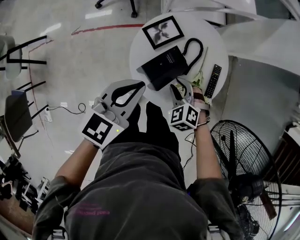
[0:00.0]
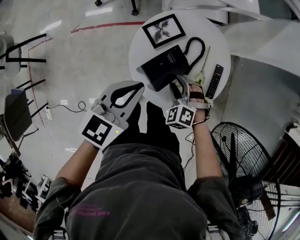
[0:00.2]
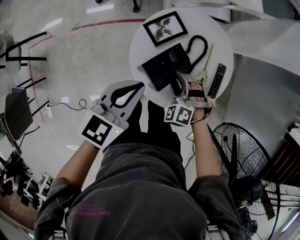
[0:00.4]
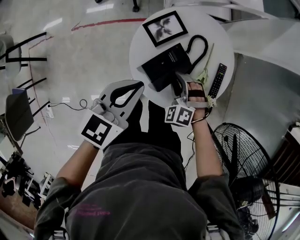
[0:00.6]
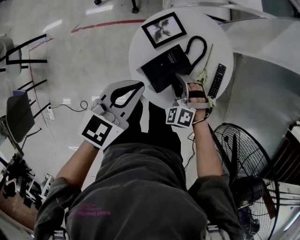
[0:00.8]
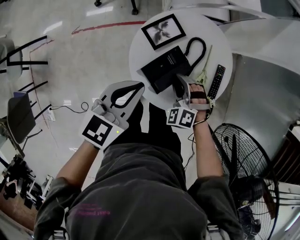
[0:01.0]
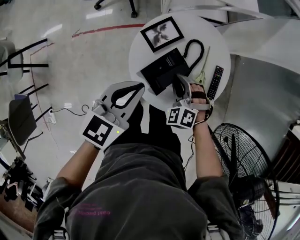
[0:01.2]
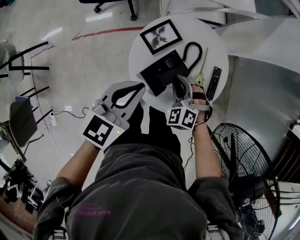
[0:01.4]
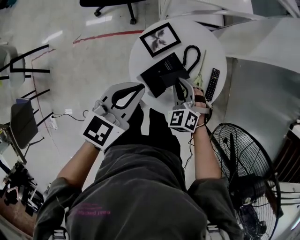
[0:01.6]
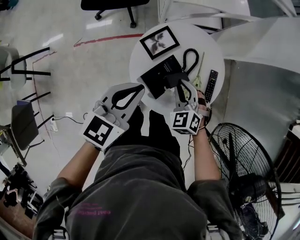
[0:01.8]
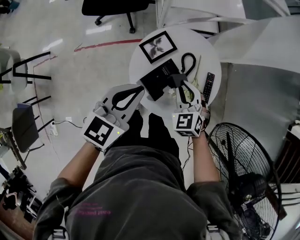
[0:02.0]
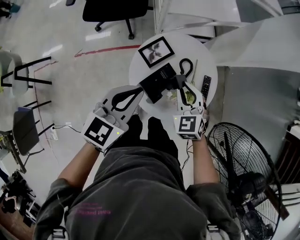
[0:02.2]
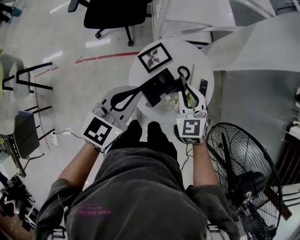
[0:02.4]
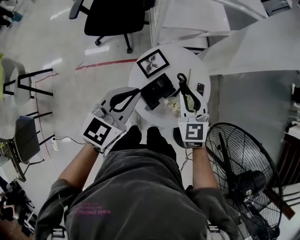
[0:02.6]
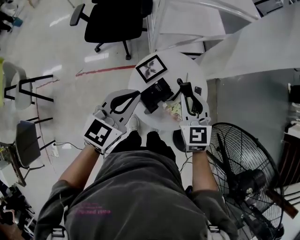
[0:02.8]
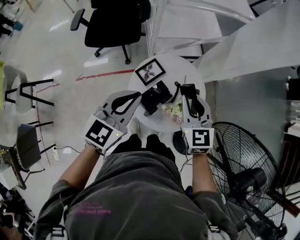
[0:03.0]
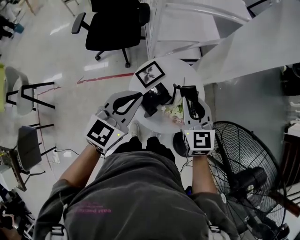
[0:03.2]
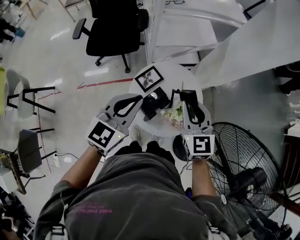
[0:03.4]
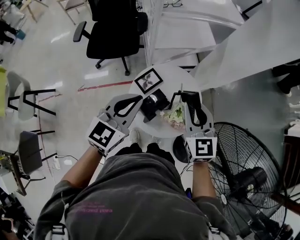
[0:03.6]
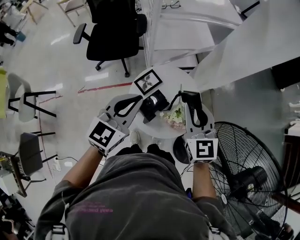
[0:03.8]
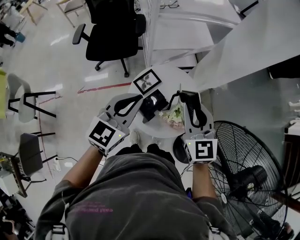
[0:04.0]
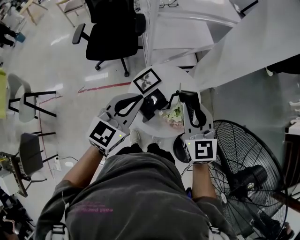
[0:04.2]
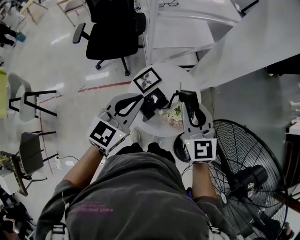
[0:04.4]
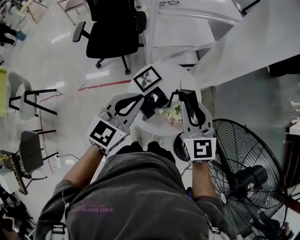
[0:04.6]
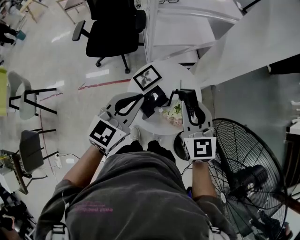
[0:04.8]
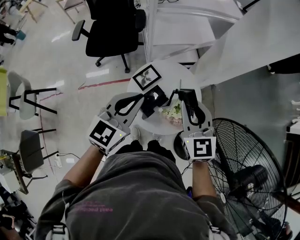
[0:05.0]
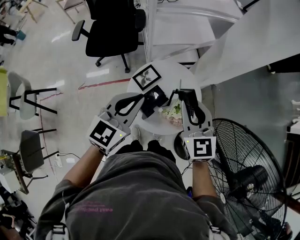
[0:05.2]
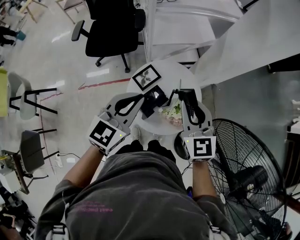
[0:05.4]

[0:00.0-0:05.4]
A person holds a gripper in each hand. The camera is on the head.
0:00.0 to 0:01.4: The grippers make only small movements.
0:01.4 to 0:02.8: The right gripper shifts roughly 25 cm upward, and rotates about 50 degrees. The left gripper goes approximately 10 cm upward.
0:02.8 to 0:04.0: The left gripper travels upward by about 5 cm; the right gripper travels upward by roughly 10 cm.
0:04.0 to 0:05.4: The grippers make only small movements.

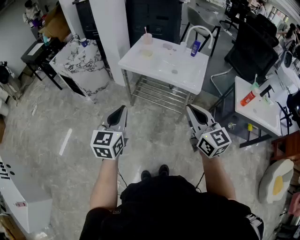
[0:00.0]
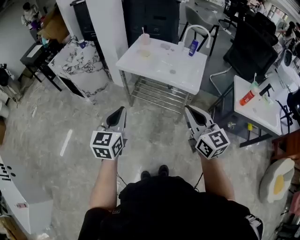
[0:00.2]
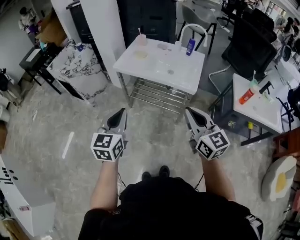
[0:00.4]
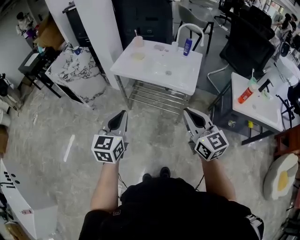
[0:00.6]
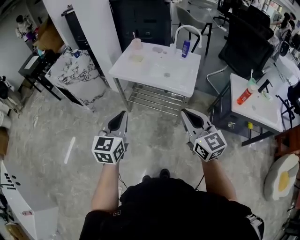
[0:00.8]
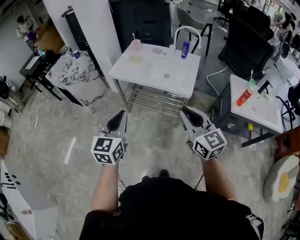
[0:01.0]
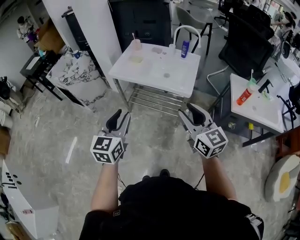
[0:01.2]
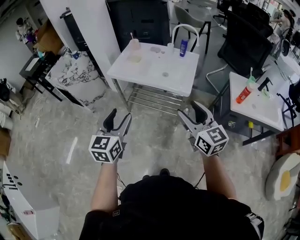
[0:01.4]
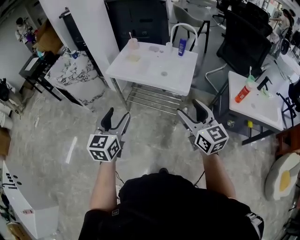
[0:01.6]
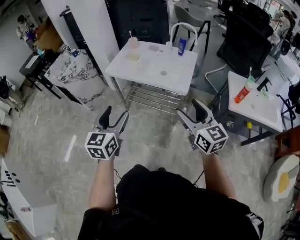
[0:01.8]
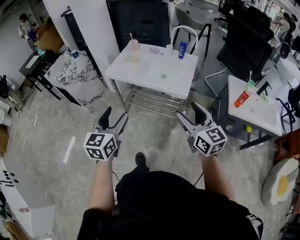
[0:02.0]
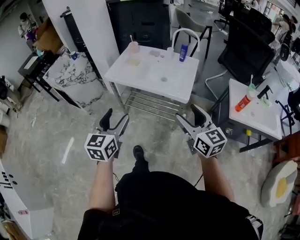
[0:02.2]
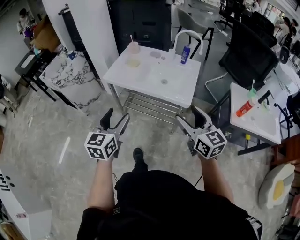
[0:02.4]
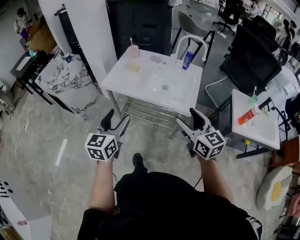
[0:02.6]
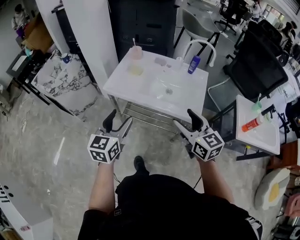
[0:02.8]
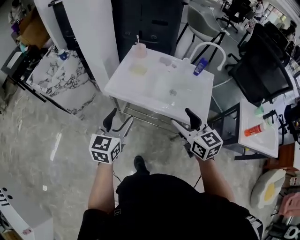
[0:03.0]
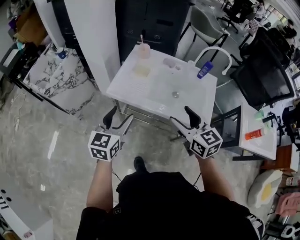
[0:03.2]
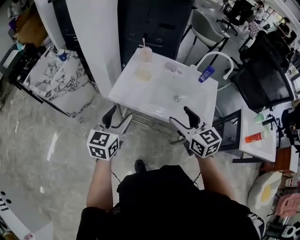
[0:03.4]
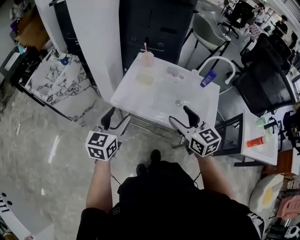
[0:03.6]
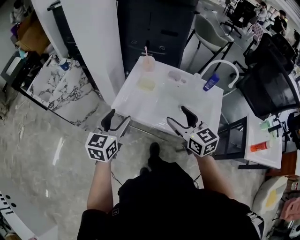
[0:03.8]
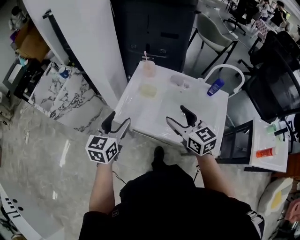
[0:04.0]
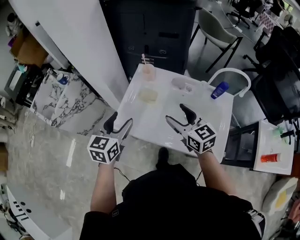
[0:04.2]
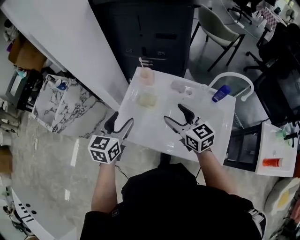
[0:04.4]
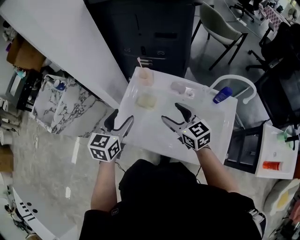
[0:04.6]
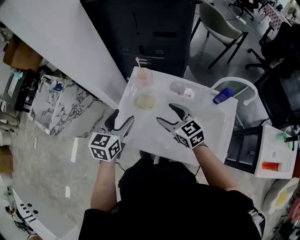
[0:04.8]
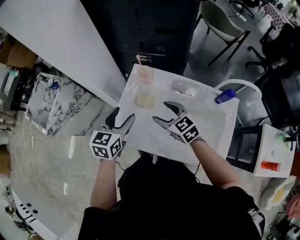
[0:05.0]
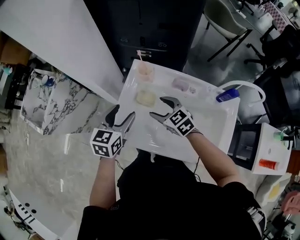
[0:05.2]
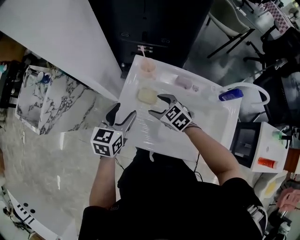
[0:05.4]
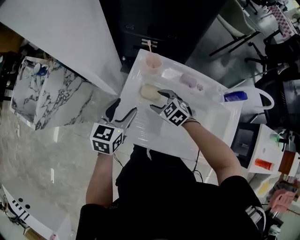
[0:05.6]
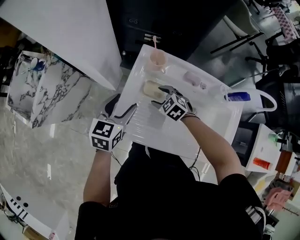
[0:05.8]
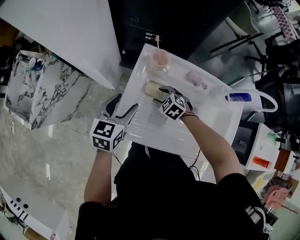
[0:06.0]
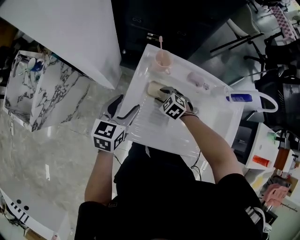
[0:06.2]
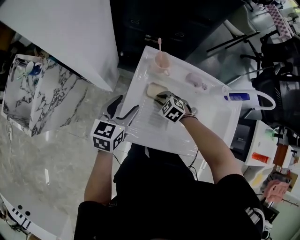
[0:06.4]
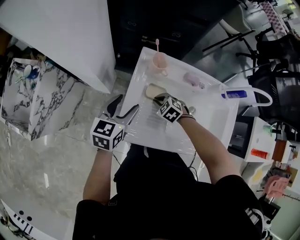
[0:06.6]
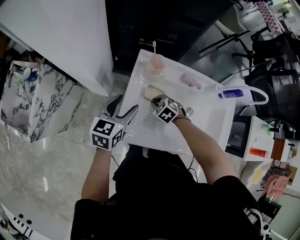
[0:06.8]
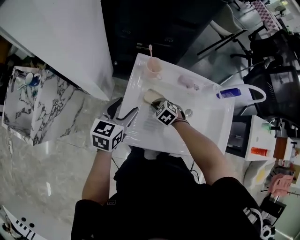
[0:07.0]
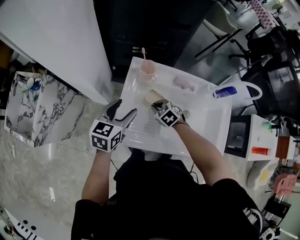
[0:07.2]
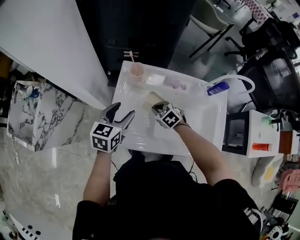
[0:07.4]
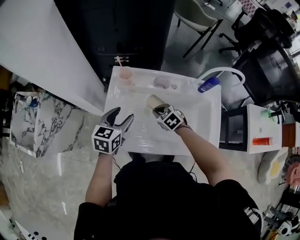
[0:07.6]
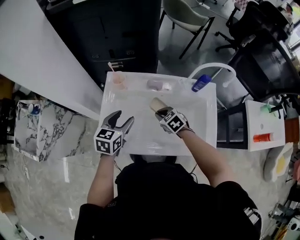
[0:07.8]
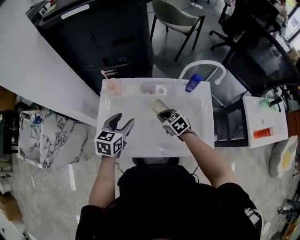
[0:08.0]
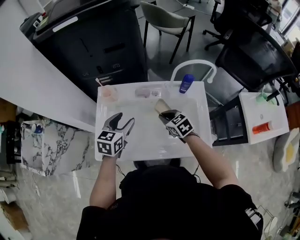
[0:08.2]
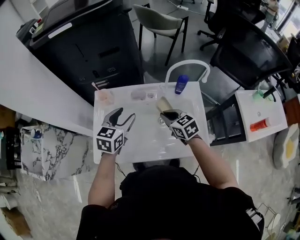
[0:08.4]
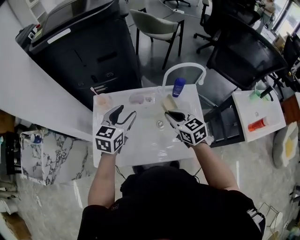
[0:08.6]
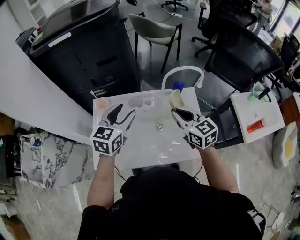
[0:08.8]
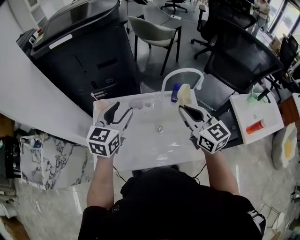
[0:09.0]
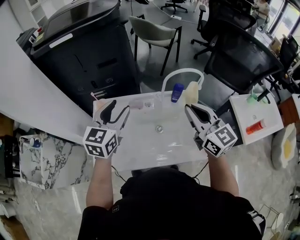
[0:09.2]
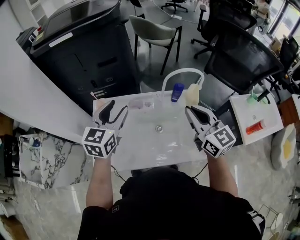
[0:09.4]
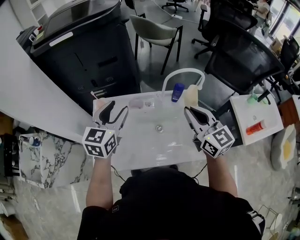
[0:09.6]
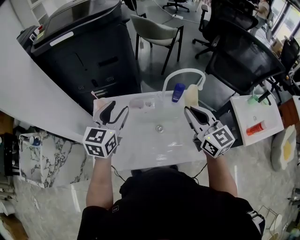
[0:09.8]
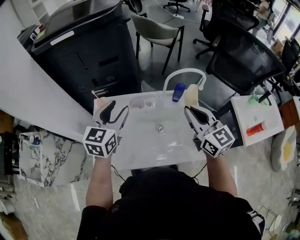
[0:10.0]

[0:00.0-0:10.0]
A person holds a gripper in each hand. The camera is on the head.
0:00.0 to 0:01.4: The two grippers go roughly 10 cm to the right. The right gripper opens its fingers. The left gripper opens up.
0:01.4 to 0:02.8: Both grippers move forward, roughly 20 cm.
0:02.8 to 0:04.2: Both grippers move forward, roughly 30 cm.
0:04.2 to 0:05.8: The left gripper is displaced forward and downward by approximately 20 cm. The right gripper heads downward and forward, covering some 30 cm, and points its fingers some 40 degrees further downward.
0:05.8 to 0:07.2: The right gripper closes.
0:07.2 to 0:08.6: The grippers both shift to the right and upward by some 30 cm. The right gripper angles its fingers upward, by approximately 30 degrees.
0:08.6 to 0:10.0: The right gripper goes some 15 cm upward, and changes its angle by approximately 20 degrees. Meanwhile the left gripper heads upward, covering about 10 cm.

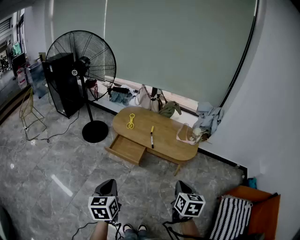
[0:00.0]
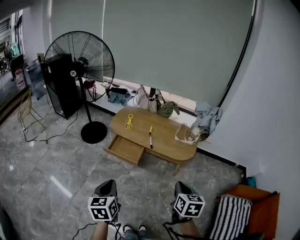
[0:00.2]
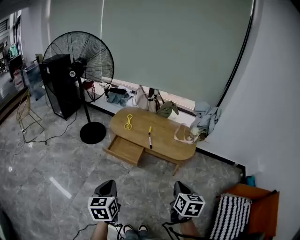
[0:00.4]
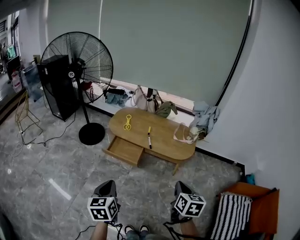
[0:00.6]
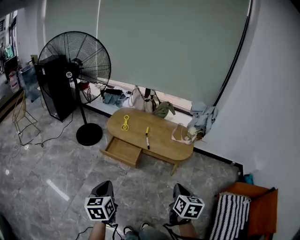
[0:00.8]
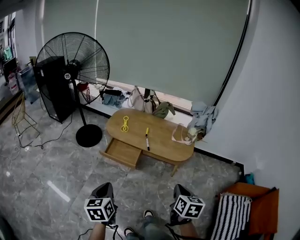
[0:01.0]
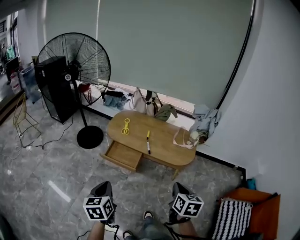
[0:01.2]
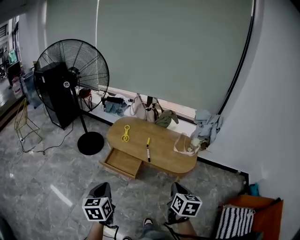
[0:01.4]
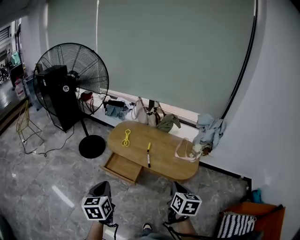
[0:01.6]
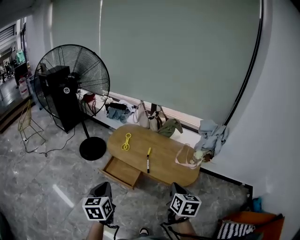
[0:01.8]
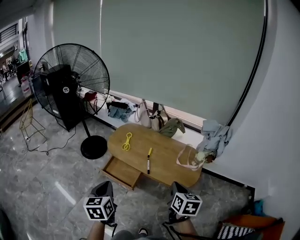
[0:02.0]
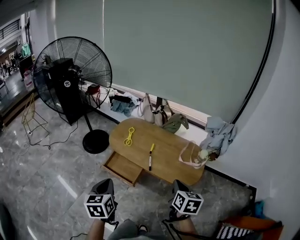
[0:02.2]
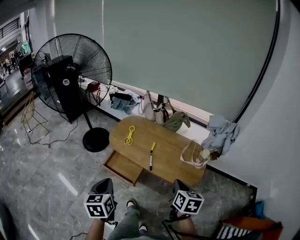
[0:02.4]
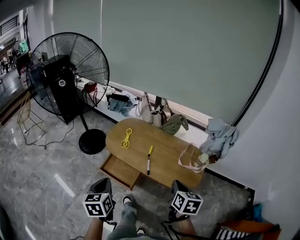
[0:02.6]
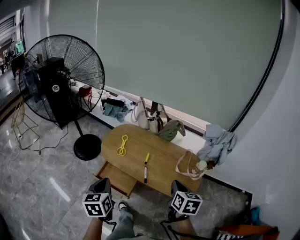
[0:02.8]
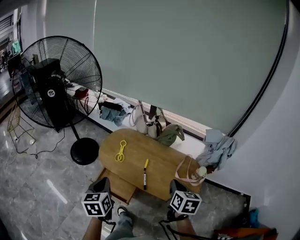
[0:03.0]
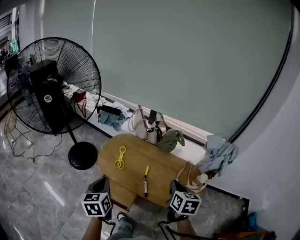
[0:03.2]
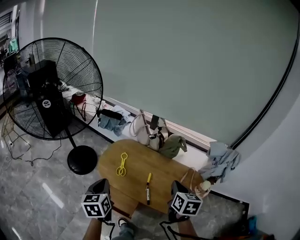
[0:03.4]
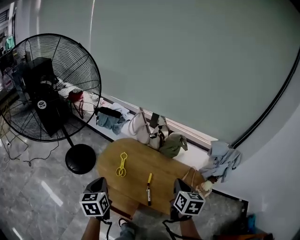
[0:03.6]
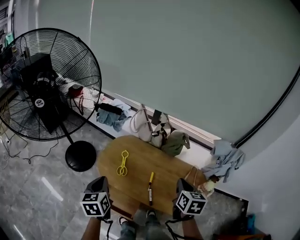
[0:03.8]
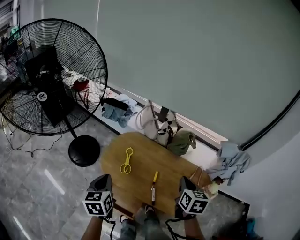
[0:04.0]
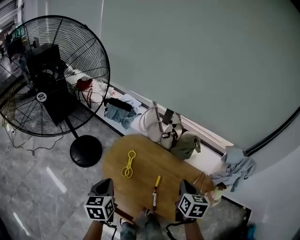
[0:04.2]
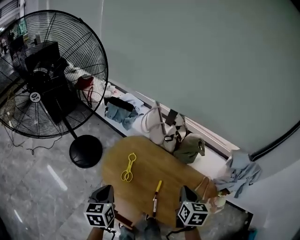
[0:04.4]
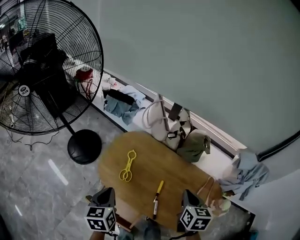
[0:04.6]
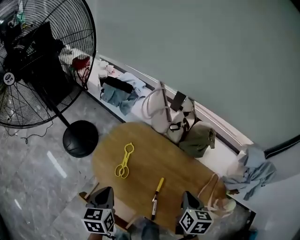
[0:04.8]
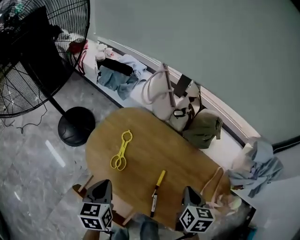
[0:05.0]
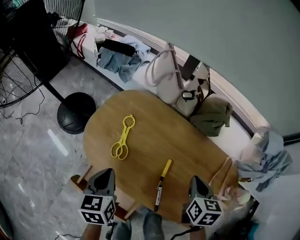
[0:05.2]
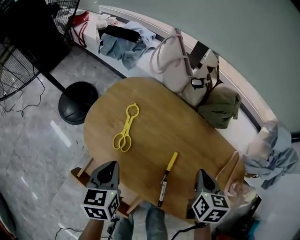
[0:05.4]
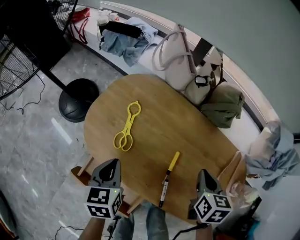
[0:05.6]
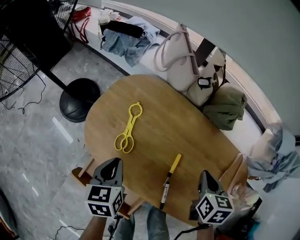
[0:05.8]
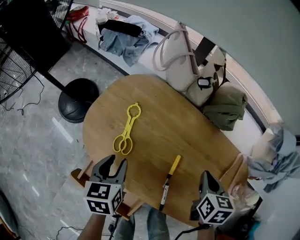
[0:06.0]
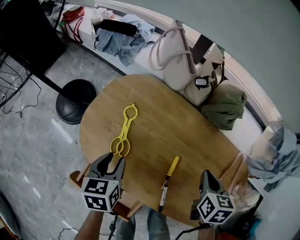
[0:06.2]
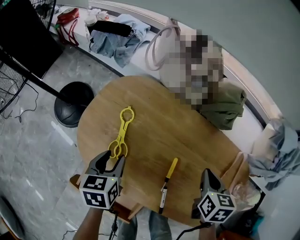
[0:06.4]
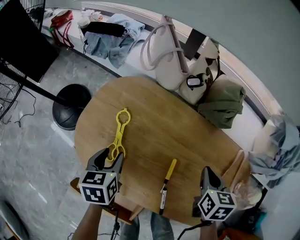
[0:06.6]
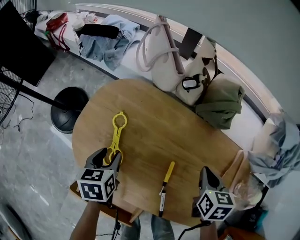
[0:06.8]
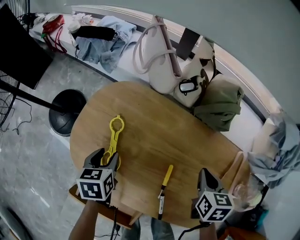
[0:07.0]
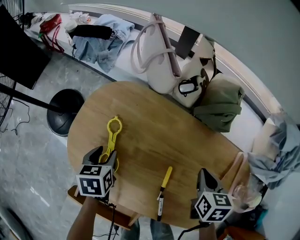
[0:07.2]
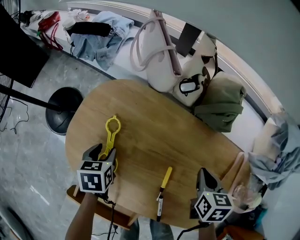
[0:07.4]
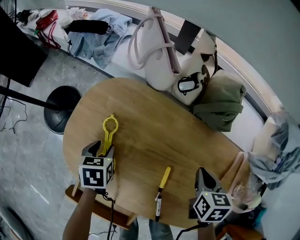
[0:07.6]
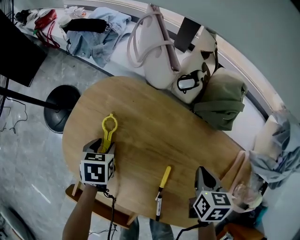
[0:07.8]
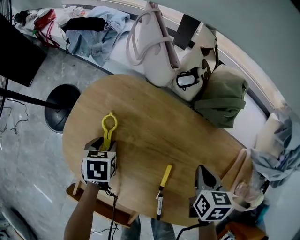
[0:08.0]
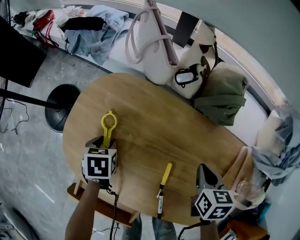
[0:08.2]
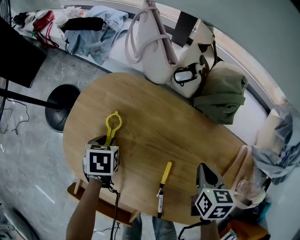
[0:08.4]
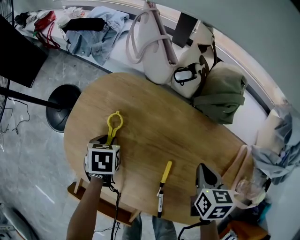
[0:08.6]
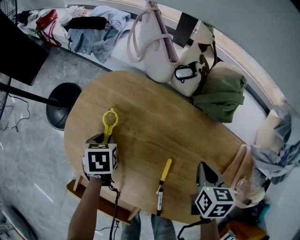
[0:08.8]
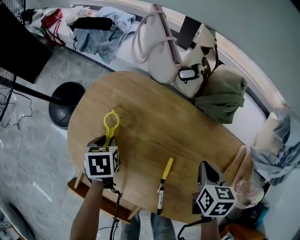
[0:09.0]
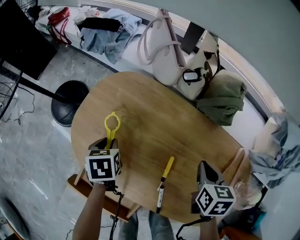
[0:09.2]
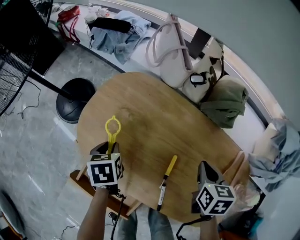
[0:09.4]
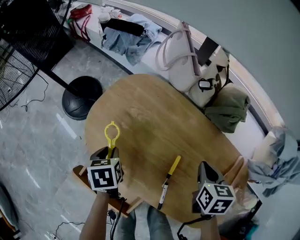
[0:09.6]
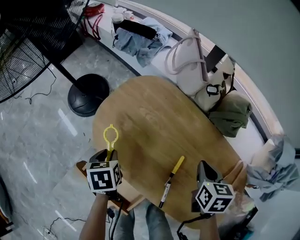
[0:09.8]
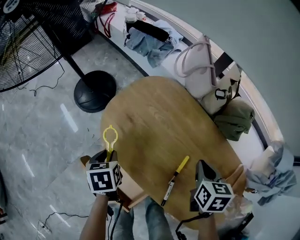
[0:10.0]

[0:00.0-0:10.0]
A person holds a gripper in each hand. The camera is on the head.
0:00.0 to 0:01.4: Both grippers travel together forward, about 10 cm.
0:01.4 to 0:02.8: The grippers both shift forward by about 25 cm.
0:02.8 to 0:04.2: The two grippers go approximately 30 cm forward.
0:04.2 to 0:05.8: The two grippers go about 30 cm downward.
0:05.8 to 0:07.2: The right gripper moves forward, approximately 5 cm, while the left gripper goes some 15 cm forward and downward, and opens its fingers.
0:07.2 to 0:08.6: The left gripper ends up approximately 5 cm from where it was.
0:08.6 to 0:10.0: The right gripper travels to the left and upward by about 10 cm, while the left gripper moves backward, to the left and upward, some 25 cm, and changes its angle by about 30 degrees.
